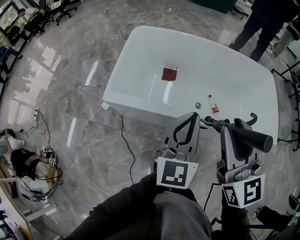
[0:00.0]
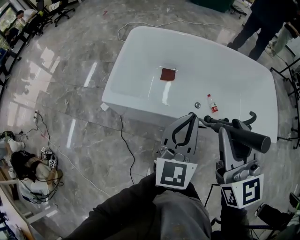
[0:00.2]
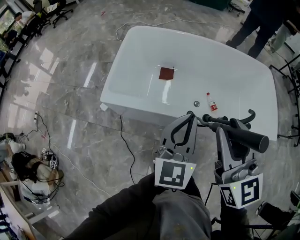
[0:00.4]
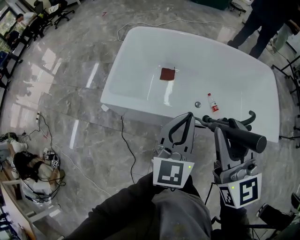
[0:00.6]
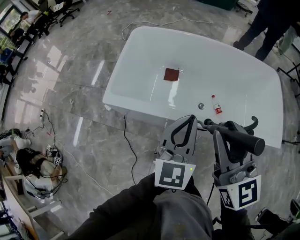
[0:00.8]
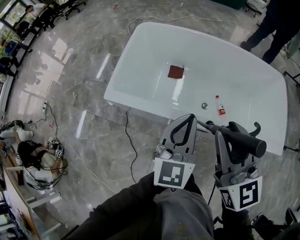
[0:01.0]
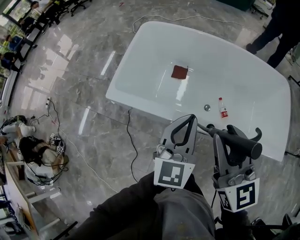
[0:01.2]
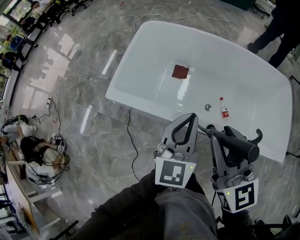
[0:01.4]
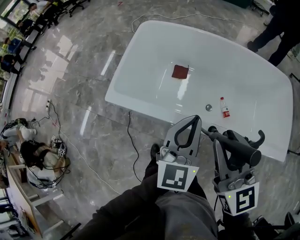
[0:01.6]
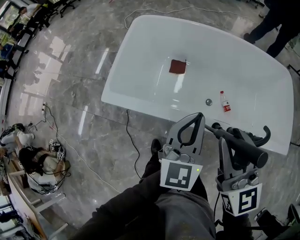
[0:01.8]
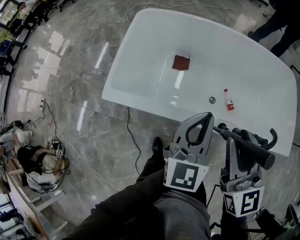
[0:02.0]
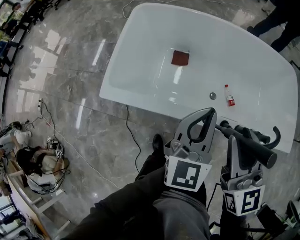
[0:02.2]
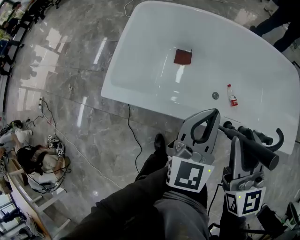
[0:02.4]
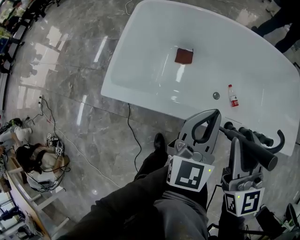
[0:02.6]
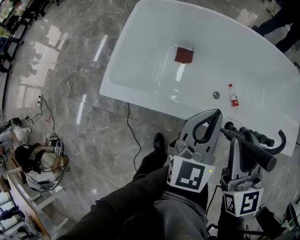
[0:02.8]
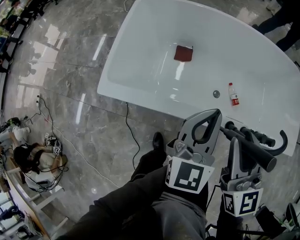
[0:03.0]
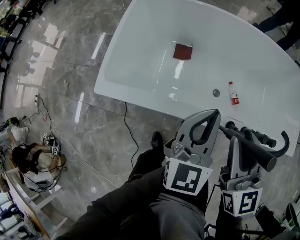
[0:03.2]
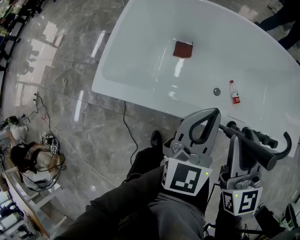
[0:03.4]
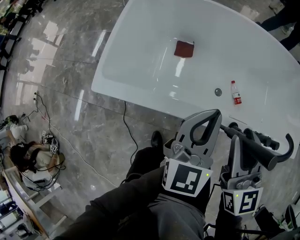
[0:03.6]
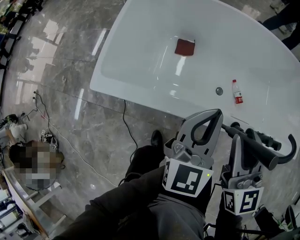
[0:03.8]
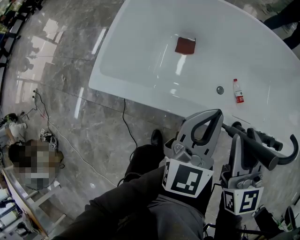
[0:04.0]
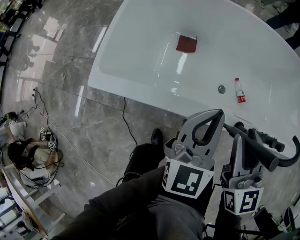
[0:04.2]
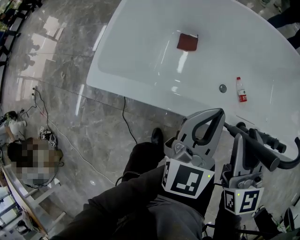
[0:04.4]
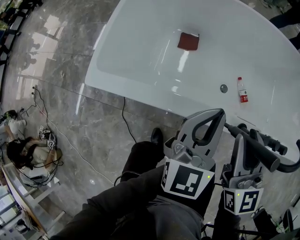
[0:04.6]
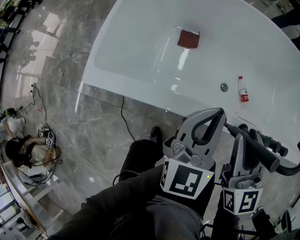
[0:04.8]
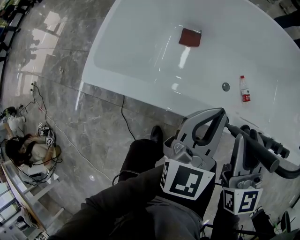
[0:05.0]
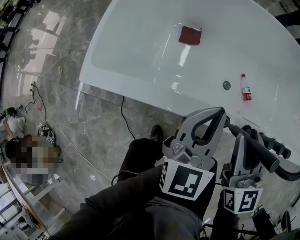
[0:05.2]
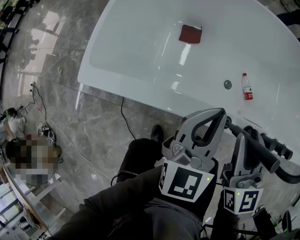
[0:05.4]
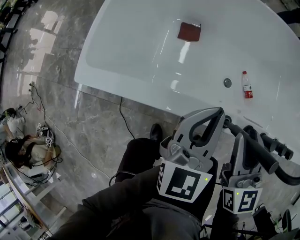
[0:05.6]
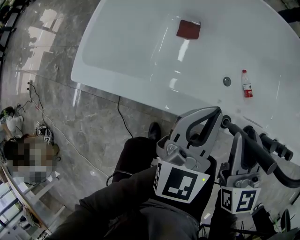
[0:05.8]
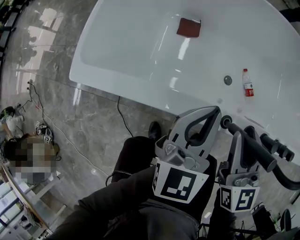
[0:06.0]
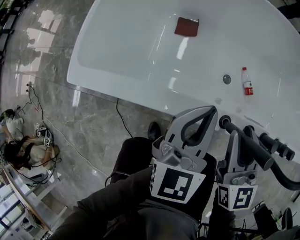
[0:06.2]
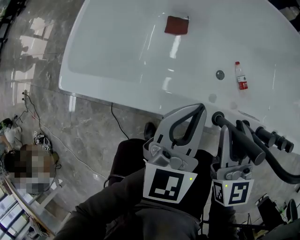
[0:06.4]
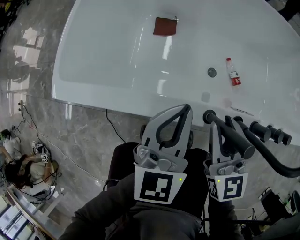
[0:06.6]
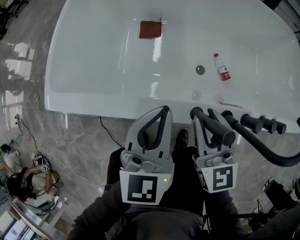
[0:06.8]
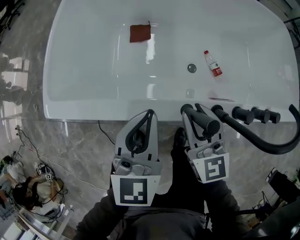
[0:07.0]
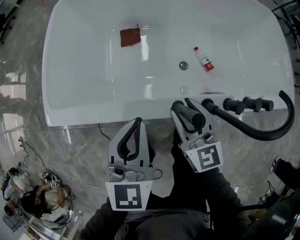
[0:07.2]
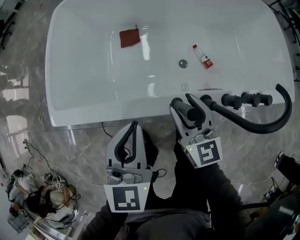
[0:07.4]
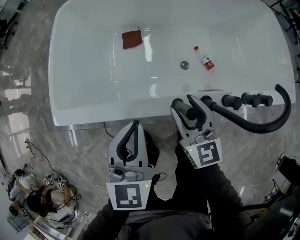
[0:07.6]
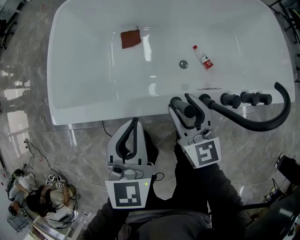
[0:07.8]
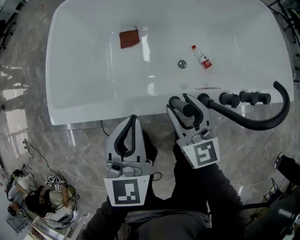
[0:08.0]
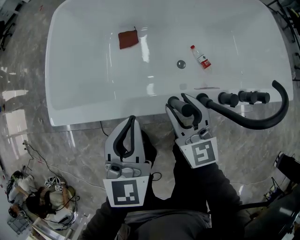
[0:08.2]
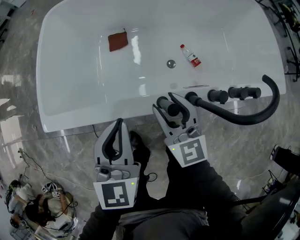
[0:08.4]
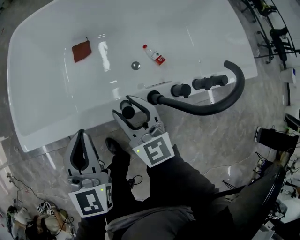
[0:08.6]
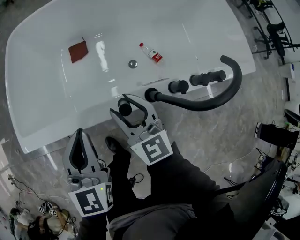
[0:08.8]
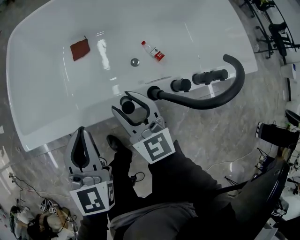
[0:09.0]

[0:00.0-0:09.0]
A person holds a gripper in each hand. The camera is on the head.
0:00.0 to 0:01.6: The left gripper moves forward, about 5 cm, while the right gripper heads forward and downward, covering about 10 cm.
0:01.6 to 0:03.0: Both grippers travel together downward, some 10 cm.
0:03.0 to 0:04.4: The two grippers go some 10 cm downward.
0:04.4 to 0:06.0: Both grippers move downward, some 10 cm.
0:06.0 to 0:07.6: The left gripper moves roughly 5 cm.
0:07.6 to 0:09.0: The grippers stay close to where they were, moving slightly.

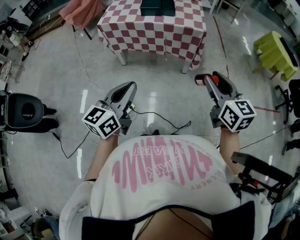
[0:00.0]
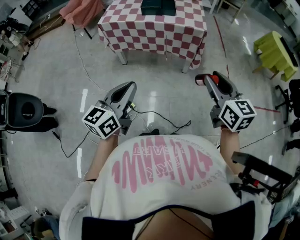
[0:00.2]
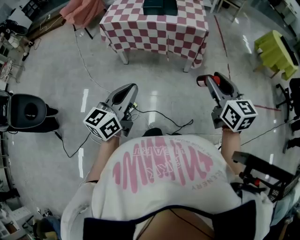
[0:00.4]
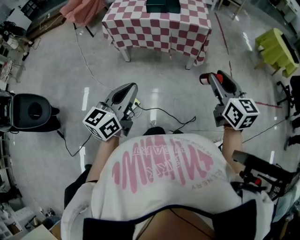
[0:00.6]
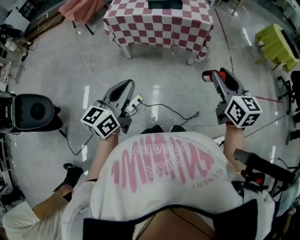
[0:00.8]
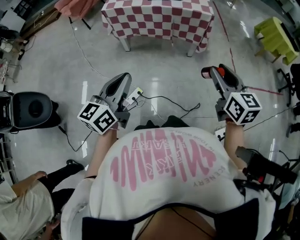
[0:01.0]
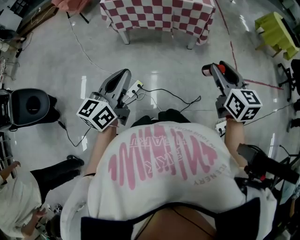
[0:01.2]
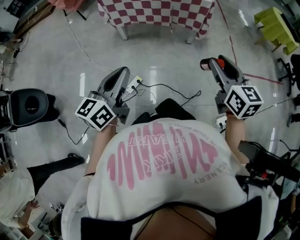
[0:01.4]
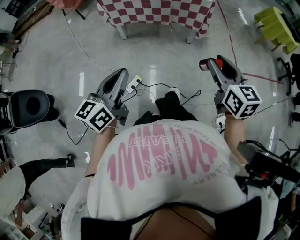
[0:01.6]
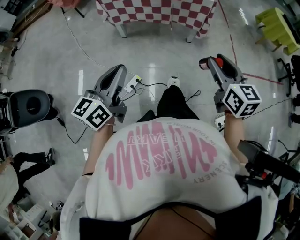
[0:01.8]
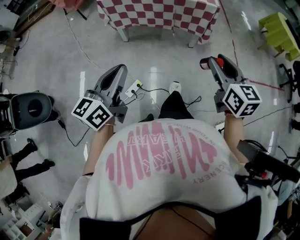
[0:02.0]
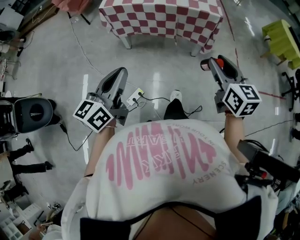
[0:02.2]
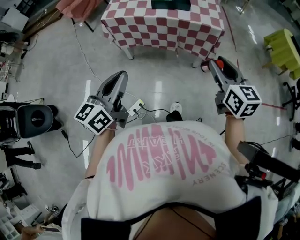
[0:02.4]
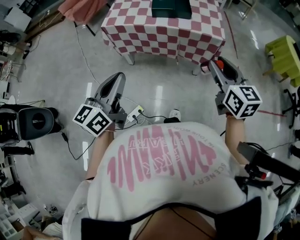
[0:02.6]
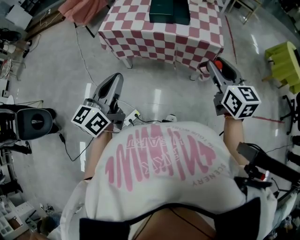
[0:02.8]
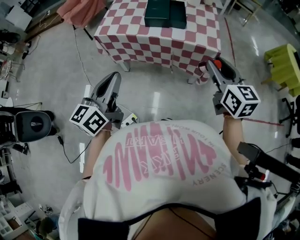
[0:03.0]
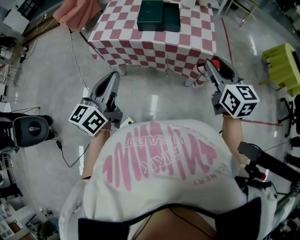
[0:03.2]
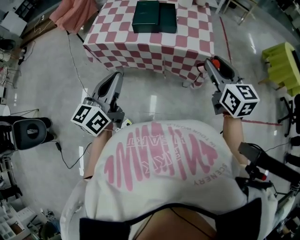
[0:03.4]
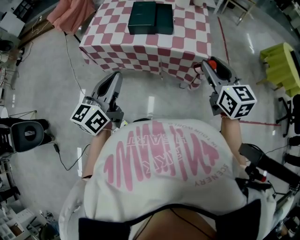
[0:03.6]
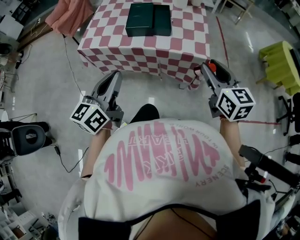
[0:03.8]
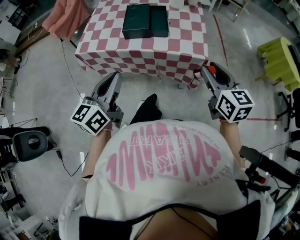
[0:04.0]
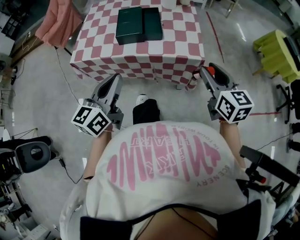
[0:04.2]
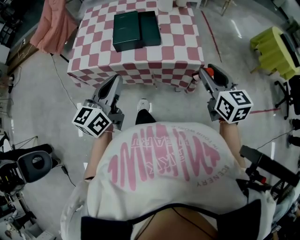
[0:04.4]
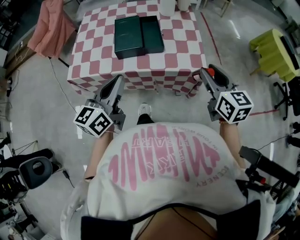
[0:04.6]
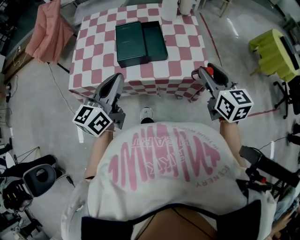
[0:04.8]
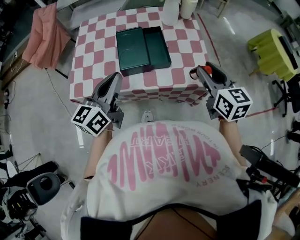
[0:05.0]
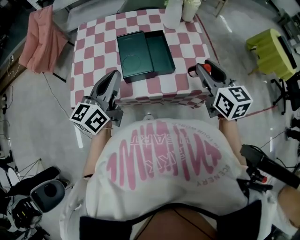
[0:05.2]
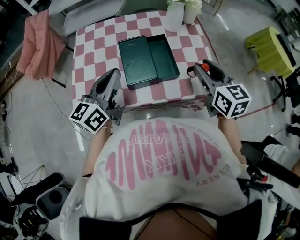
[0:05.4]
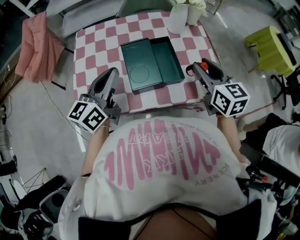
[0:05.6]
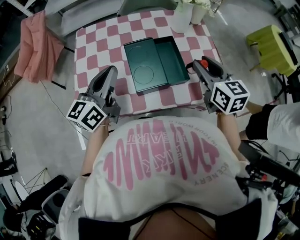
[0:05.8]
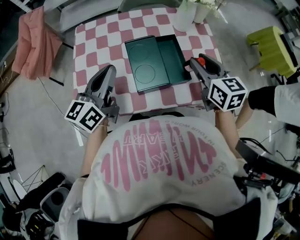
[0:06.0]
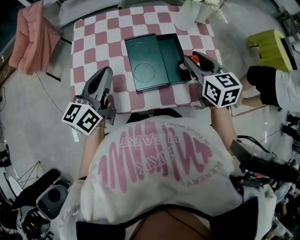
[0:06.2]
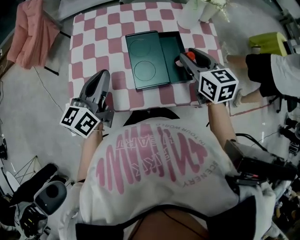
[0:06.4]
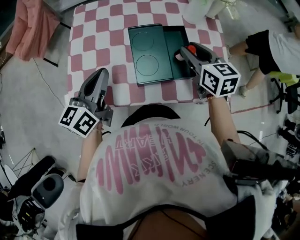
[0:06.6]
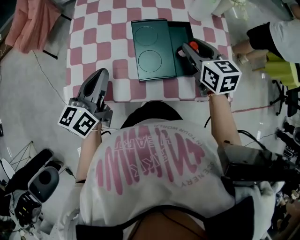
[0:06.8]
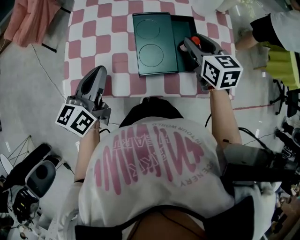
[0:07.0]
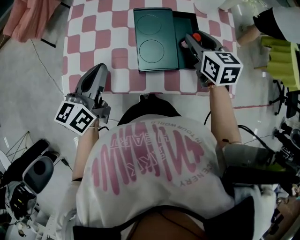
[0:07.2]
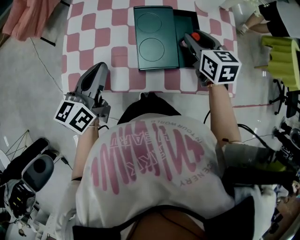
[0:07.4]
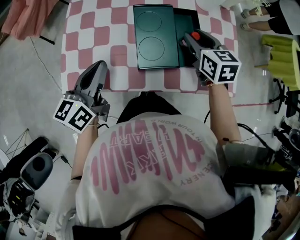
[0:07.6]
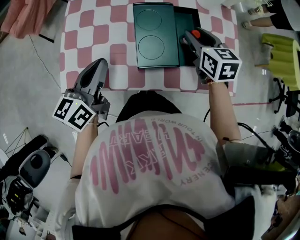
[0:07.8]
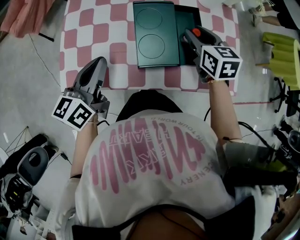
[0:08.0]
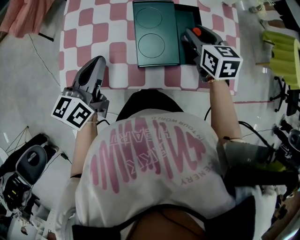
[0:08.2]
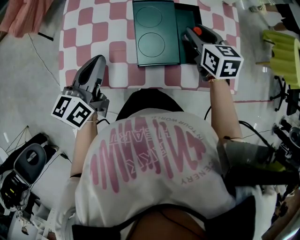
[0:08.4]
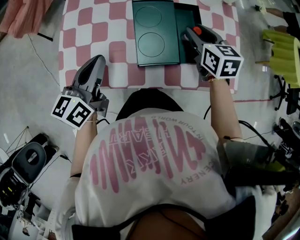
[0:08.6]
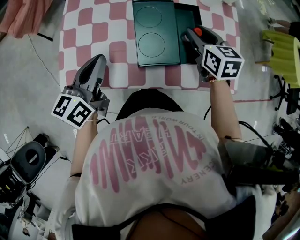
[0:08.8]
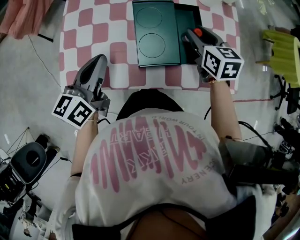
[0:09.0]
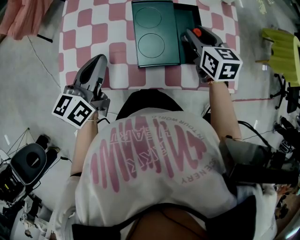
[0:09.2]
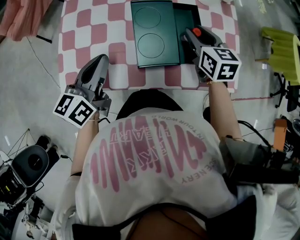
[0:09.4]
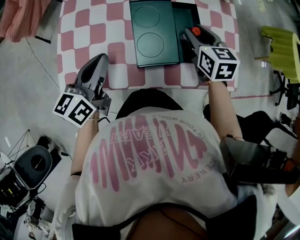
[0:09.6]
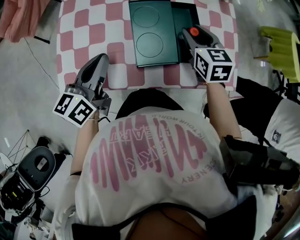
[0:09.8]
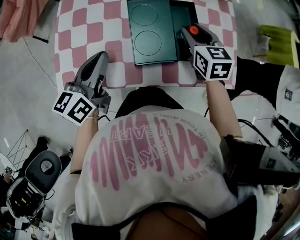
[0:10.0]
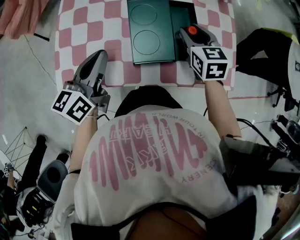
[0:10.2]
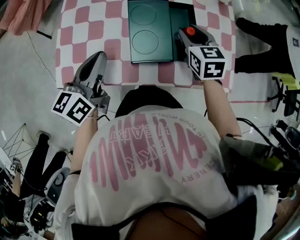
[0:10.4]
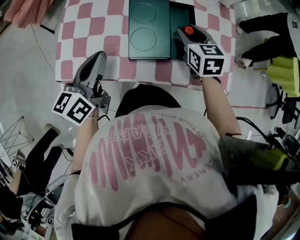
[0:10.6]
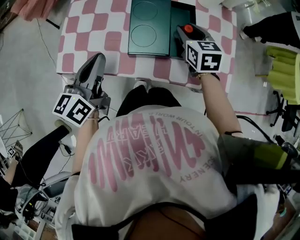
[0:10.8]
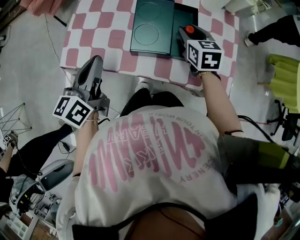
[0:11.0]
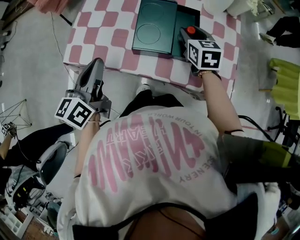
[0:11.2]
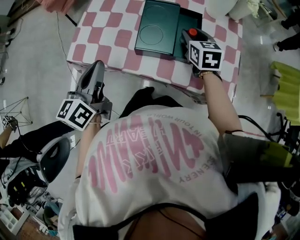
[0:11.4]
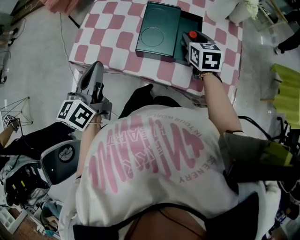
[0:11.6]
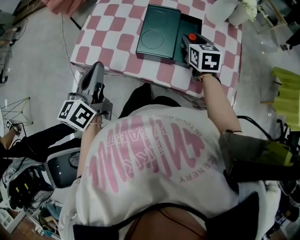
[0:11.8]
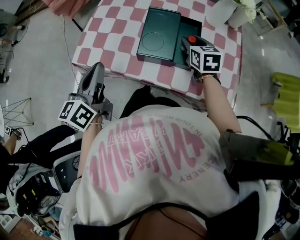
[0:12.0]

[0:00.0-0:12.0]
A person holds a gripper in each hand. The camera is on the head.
0:00.0 to 0:01.6: The grippers both shift to the left and backward by approximately 15 cm.
0:01.6 to 0:03.0: Both grippers travel together forward, about 30 cm.
0:03.0 to 0:04.4: The right gripper shifts about 15 cm forward and to the right. Meanwhile the left gripper travels forward and to the right by about 20 cm.
0:04.4 to 0:06.0: Both grippers move forward and to the left, roughly 35 cm.
0:06.0 to 0:07.6: The left gripper shifts about 10 cm downward. The right gripper shifts about 15 cm downward, forward and to the left.
0:07.6 to 0:09.0: Both grippers stay put.
0:09.0 to 0:10.4: The grippers stay close to where they were, moving slightly.
0:10.4 to 0:12.0: The left gripper travels backward and upward by roughly 15 cm, and swivels approximately 20 degrees.

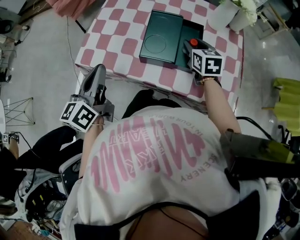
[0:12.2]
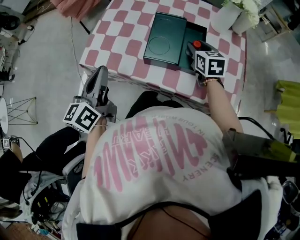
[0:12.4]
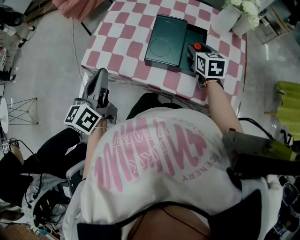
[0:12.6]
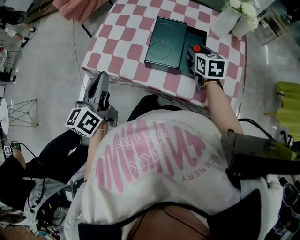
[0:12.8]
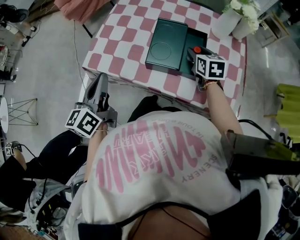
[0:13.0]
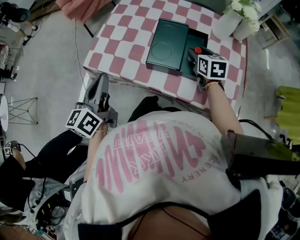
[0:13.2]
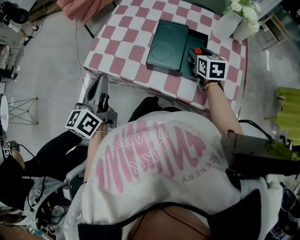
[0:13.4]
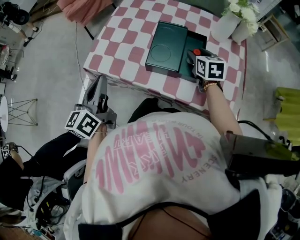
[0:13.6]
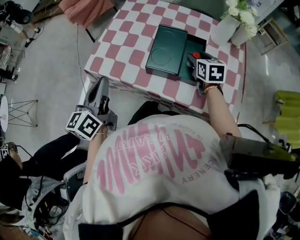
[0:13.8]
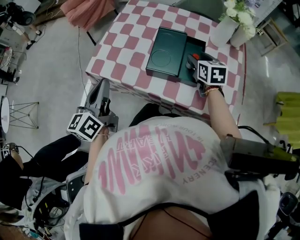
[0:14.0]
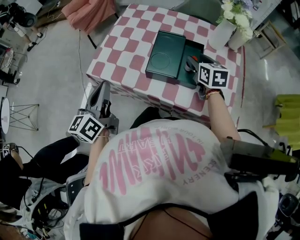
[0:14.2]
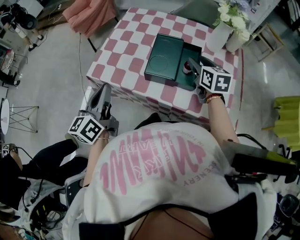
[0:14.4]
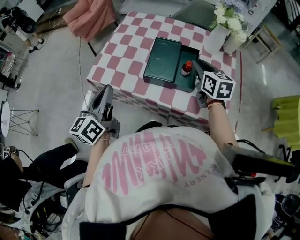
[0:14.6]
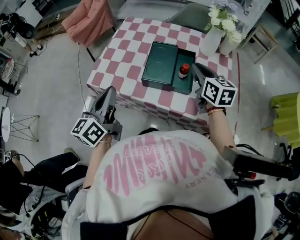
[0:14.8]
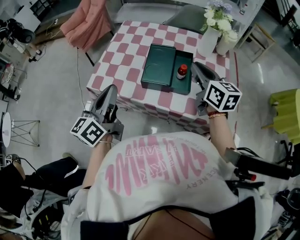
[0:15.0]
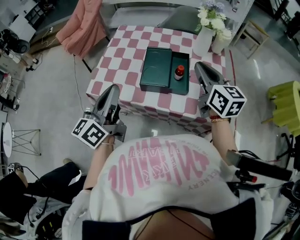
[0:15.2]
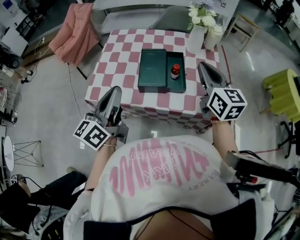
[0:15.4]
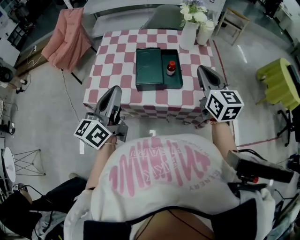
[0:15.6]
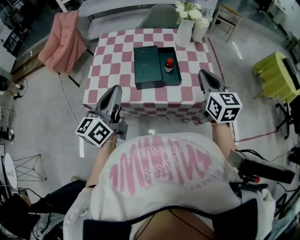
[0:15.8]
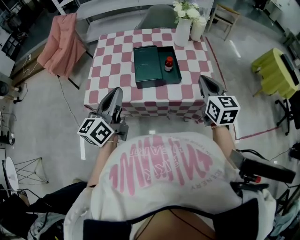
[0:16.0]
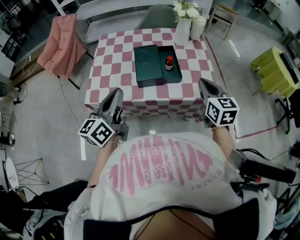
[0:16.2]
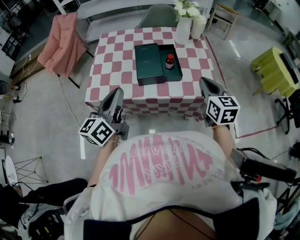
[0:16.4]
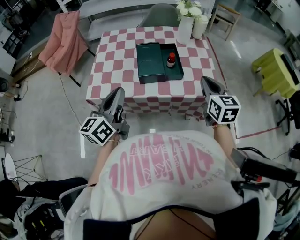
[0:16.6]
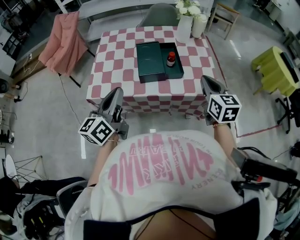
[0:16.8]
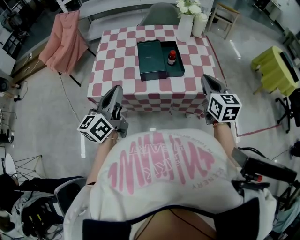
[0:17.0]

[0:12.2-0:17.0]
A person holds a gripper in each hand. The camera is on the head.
0:12.2 to 0:13.8: The grippers move only a little.
0:13.8 to 0:15.4: The left gripper moves upward and to the right, about 10 cm, and turns by roughly 20 degrees. Meanwhile the right gripper heads upward and backward, covering some 25 cm, tilts its fingers about 30 degrees upward, and closes up.
0:15.4 to 0:17.0: The left gripper moves backward, some 5 cm; the right gripper moves backward and downward, roughly 15 cm.
